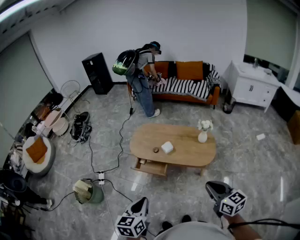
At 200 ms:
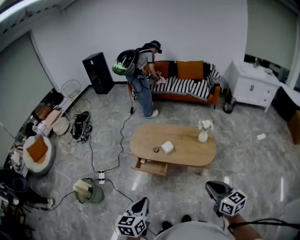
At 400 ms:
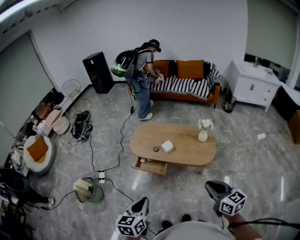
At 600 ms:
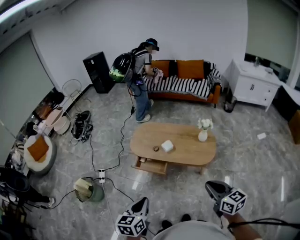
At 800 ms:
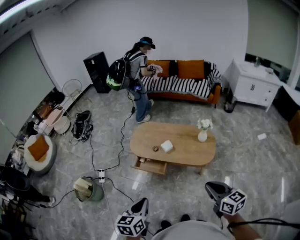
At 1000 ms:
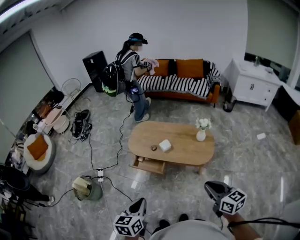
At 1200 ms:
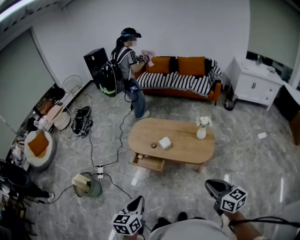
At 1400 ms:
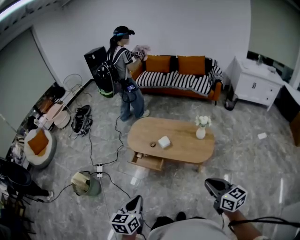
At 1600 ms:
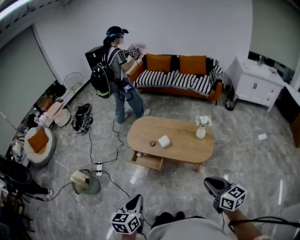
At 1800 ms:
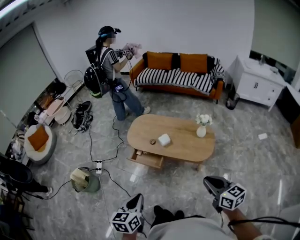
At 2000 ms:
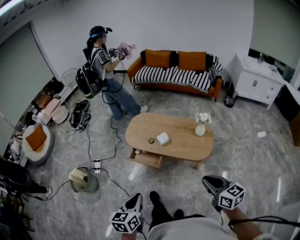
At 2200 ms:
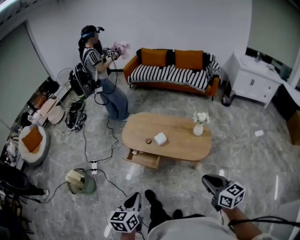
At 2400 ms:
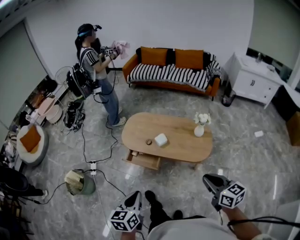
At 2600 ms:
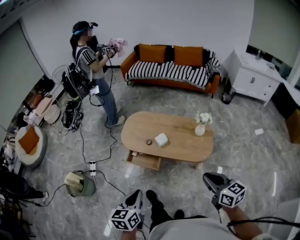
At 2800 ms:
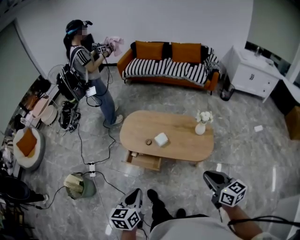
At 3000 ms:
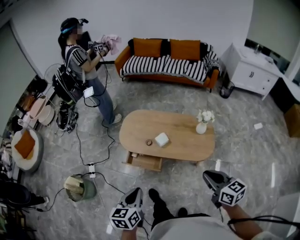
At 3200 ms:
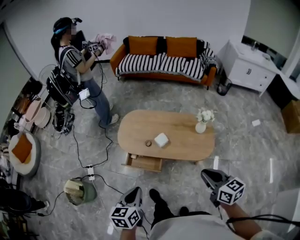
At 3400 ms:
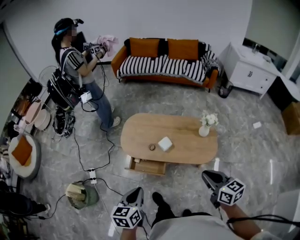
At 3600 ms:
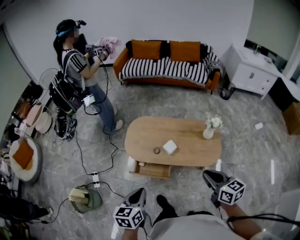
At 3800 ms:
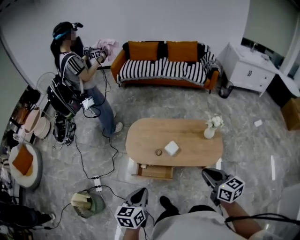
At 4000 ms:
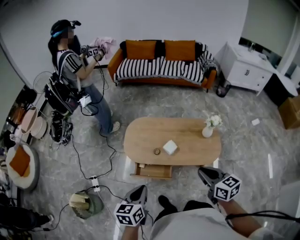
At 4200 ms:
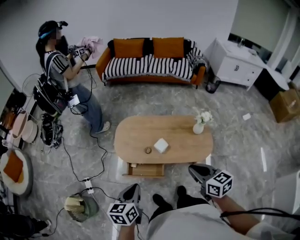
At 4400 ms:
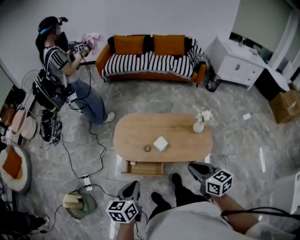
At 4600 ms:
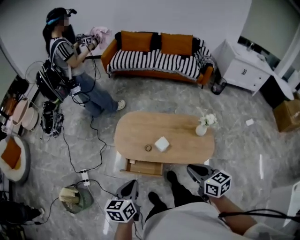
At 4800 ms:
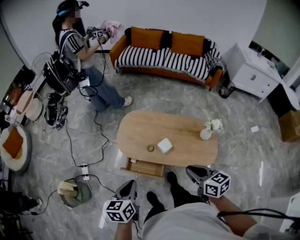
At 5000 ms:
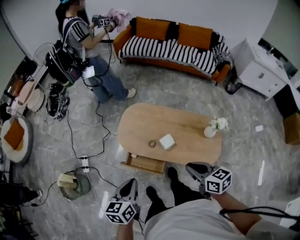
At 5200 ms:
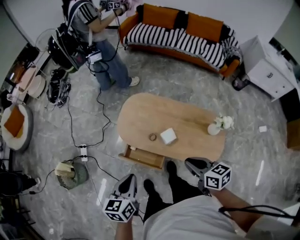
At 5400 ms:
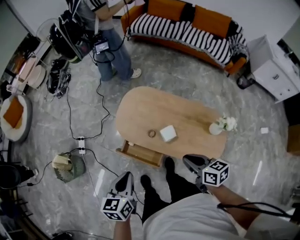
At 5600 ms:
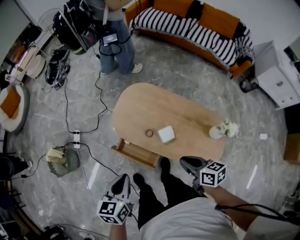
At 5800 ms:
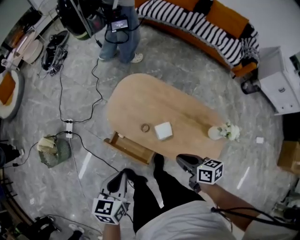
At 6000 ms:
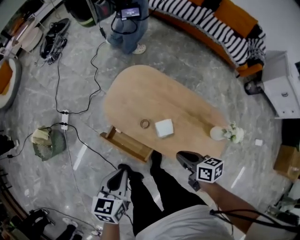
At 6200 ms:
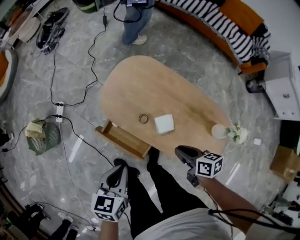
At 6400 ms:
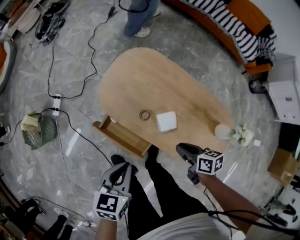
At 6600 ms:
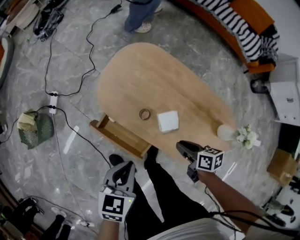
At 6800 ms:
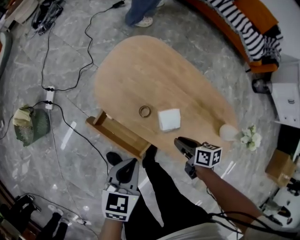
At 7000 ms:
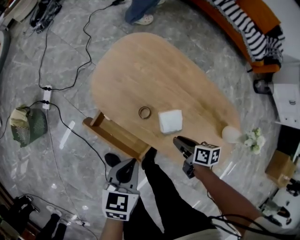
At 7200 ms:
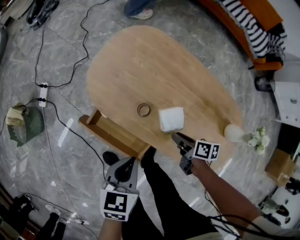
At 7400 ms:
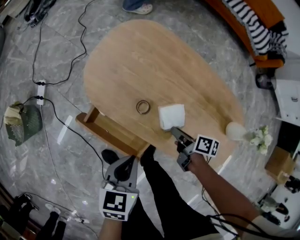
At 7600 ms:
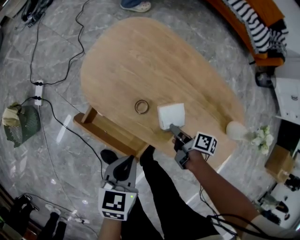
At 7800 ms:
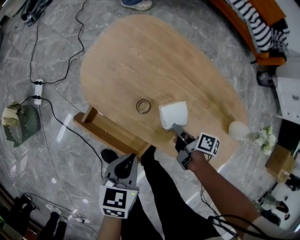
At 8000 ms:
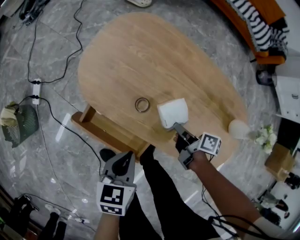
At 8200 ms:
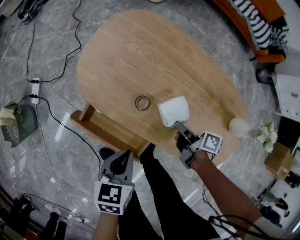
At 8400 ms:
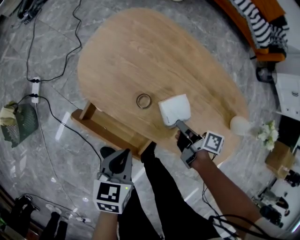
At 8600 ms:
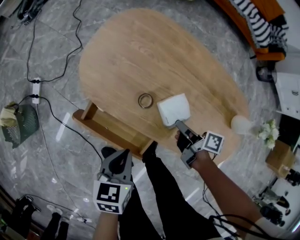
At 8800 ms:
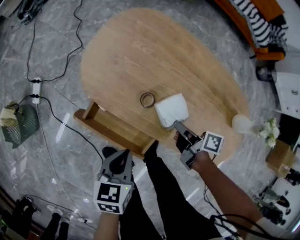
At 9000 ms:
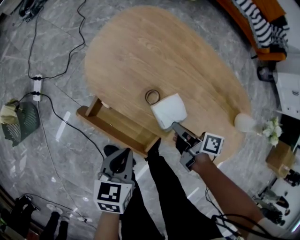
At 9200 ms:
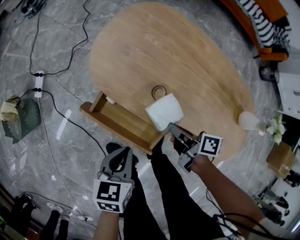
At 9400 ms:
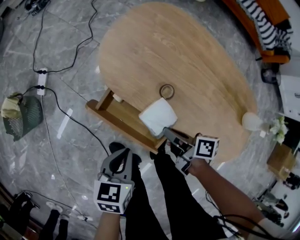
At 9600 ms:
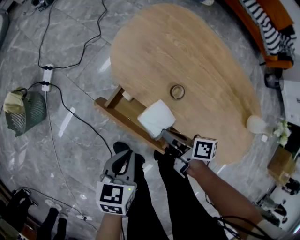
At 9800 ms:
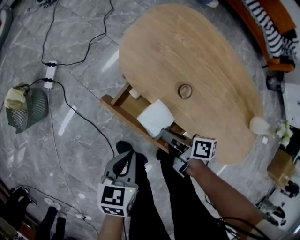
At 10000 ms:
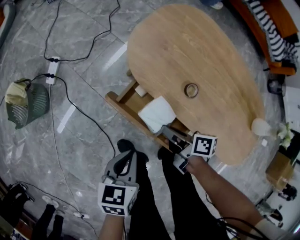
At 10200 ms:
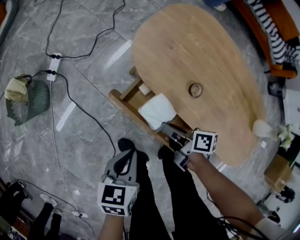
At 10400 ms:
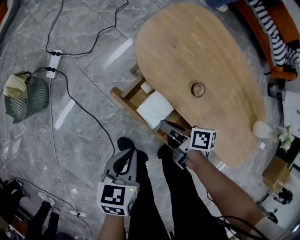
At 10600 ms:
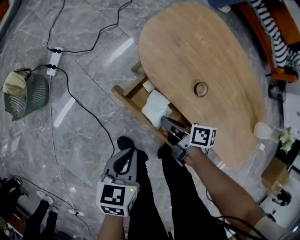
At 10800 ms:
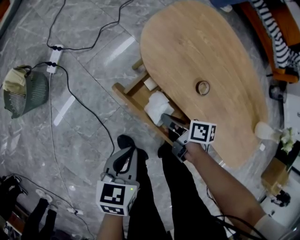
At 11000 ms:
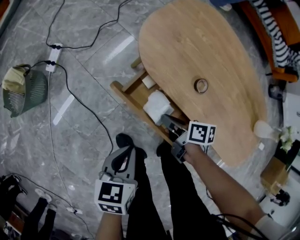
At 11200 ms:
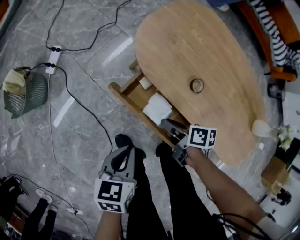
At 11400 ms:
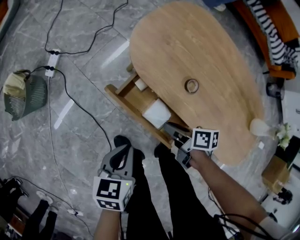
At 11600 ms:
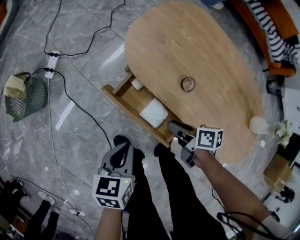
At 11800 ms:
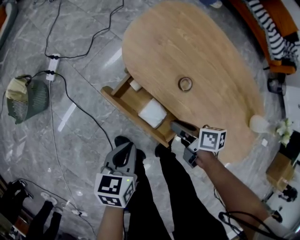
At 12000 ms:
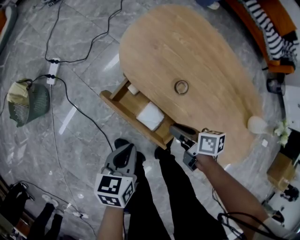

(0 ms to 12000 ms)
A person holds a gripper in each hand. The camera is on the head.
0 ms - 1600 ms: The right gripper travels to the right by approximately 5 cm.
1600 ms - 3000 ms: Both grippers move forward, roughly 15 cm.
3000 ms - 4400 ms: The right gripper heads to the left and forward, covering approximately 15 cm. The left gripper travels forward and to the left by about 15 cm.
4400 ms - 6000 ms: The left gripper travels downward by some 15 cm, and swivels approximately 20 degrees. The right gripper travels downward by about 25 cm, and swivels roughly 40 degrees.
6000 ms - 7600 ms: Both grippers move downward, approximately 25 cm. The right gripper rotates roughly 40 degrees, and opens its fingers.
7600 ms - 9000 ms: The two grippers go approximately 5 cm to the left. The right gripper closes its fingers.
9000 ms - 10400 ms: The right gripper heads to the left, covering roughly 20 cm. The left gripper heads to the left, covering about 15 cm.
10400 ms - 12000 ms: The right gripper moves to the right, some 10 cm; the left gripper shifts by approximately 5 cm.

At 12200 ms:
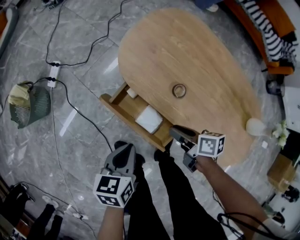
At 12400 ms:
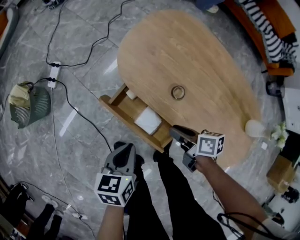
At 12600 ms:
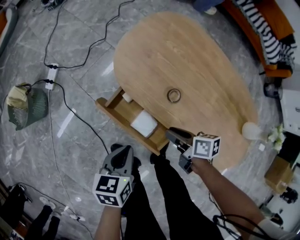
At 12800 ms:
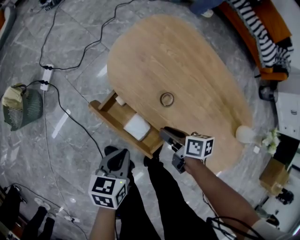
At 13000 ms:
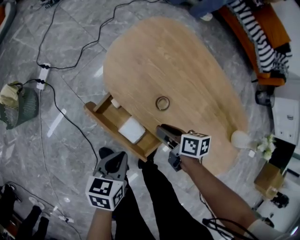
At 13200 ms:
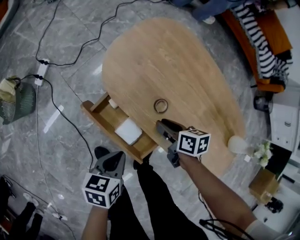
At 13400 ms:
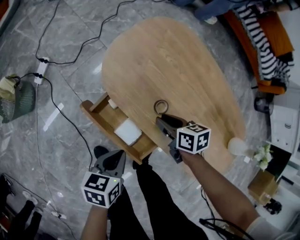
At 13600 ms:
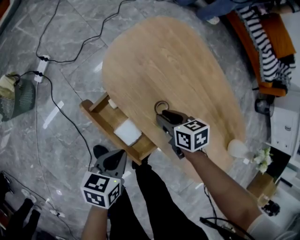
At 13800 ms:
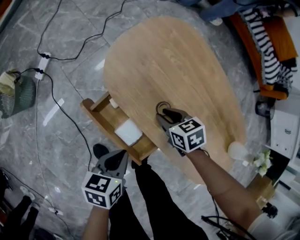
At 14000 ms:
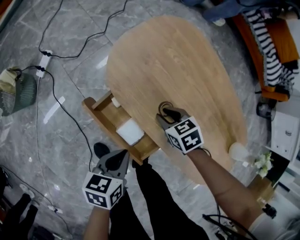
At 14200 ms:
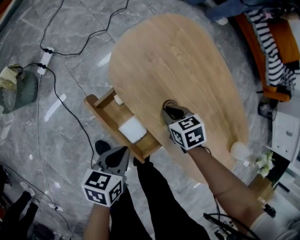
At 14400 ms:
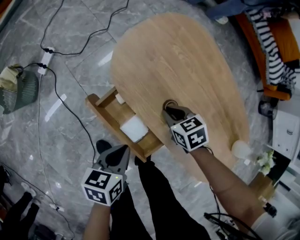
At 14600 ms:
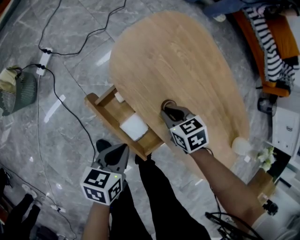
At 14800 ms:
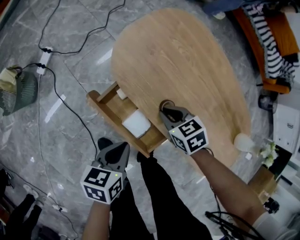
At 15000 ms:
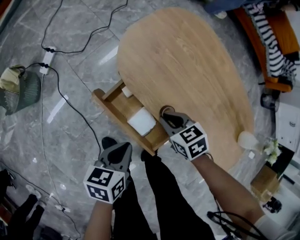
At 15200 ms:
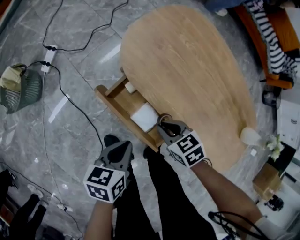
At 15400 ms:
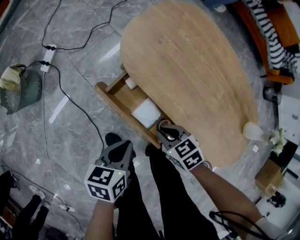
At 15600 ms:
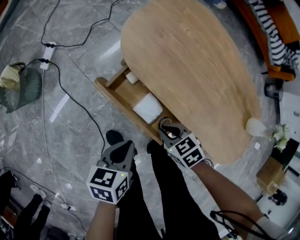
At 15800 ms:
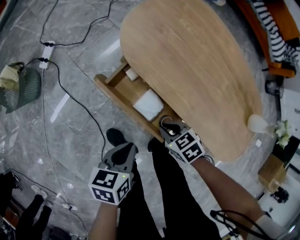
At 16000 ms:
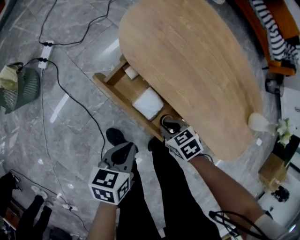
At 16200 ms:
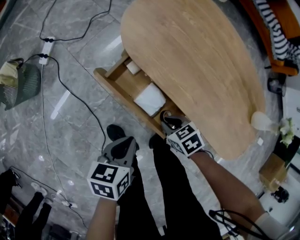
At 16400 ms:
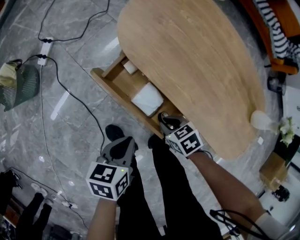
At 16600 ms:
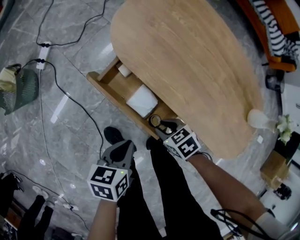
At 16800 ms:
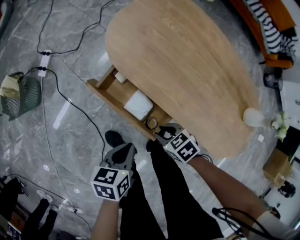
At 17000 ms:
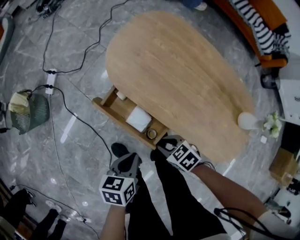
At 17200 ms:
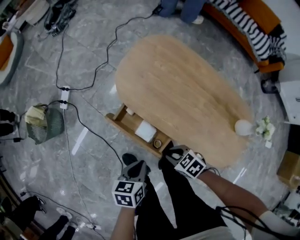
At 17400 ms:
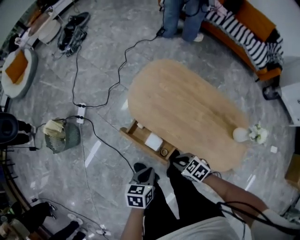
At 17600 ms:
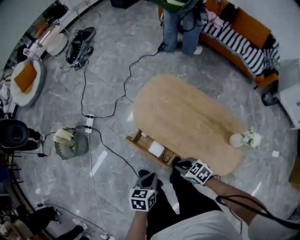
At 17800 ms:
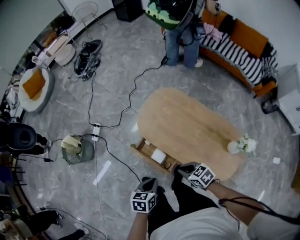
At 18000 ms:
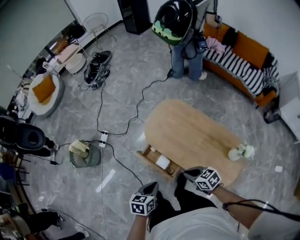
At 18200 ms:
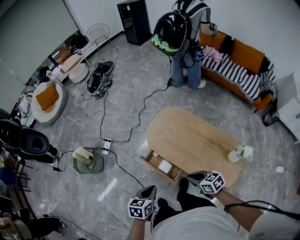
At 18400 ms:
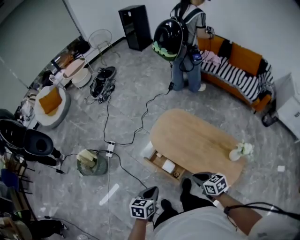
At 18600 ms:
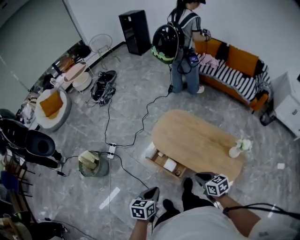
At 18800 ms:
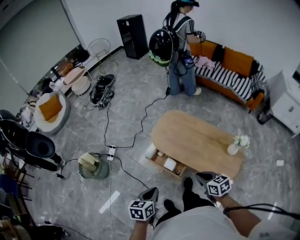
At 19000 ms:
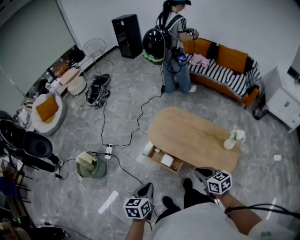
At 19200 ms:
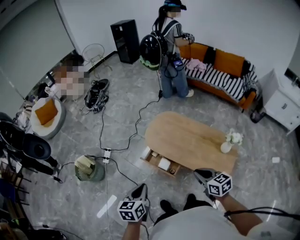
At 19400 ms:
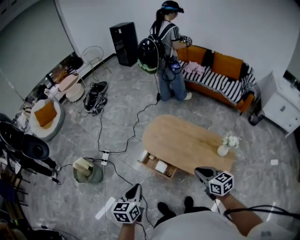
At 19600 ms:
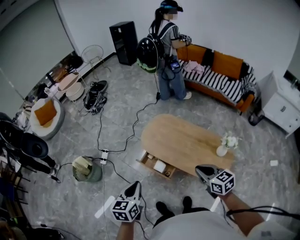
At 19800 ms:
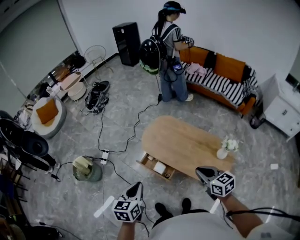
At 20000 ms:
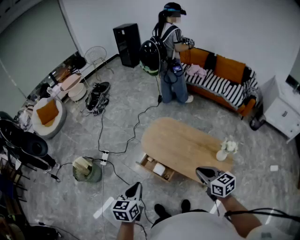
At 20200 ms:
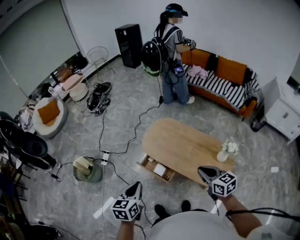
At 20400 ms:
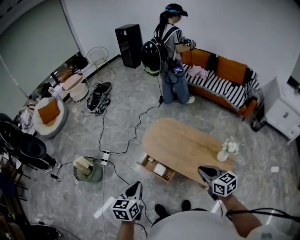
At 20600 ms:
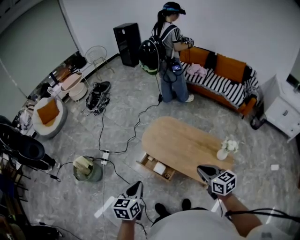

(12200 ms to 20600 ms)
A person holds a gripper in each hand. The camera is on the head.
12200 ms - 13600 ms: The right gripper heads forward, covering some 10 cm, and swivels about 40 degrees, while the left gripper is displaced to the right by approximately 5 cm.
13600 ms - 15000 ms: The right gripper shifts roughly 10 cm to the left and backward.
15000 ms - 16400 ms: The left gripper heads backward, covering approximately 5 cm. Meanwhile the right gripper goes roughly 15 cm backward and downward.
16400 ms - 17800 ms: The two grippers go roughly 30 cm upward.
17800 ms - 19200 ms: The left gripper is displaced upward, to the left and backward by some 25 cm, and changes its angle by some 20 degrees. The right gripper heads upward and backward, covering about 25 cm, and swivels some 30 degrees.
19200 ms - 20600 ms: The right gripper moves to the right and upward, approximately 10 cm. Meanwhile the left gripper ends up some 5 cm from where it was.

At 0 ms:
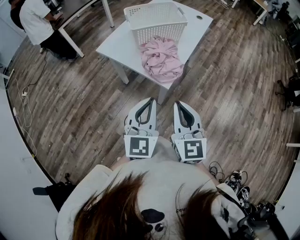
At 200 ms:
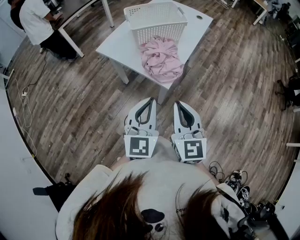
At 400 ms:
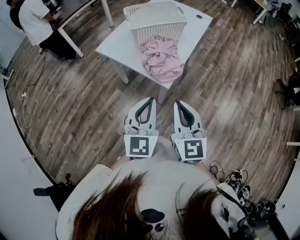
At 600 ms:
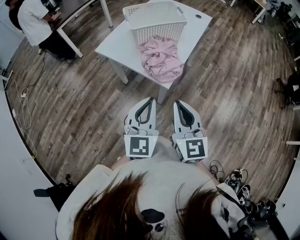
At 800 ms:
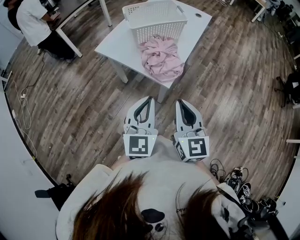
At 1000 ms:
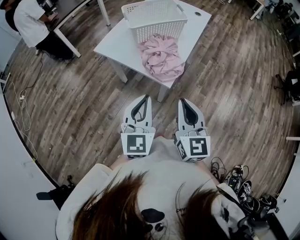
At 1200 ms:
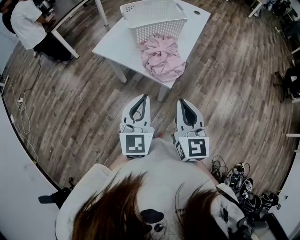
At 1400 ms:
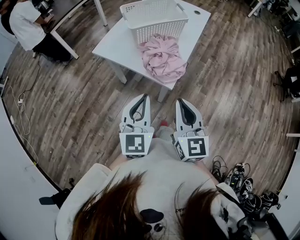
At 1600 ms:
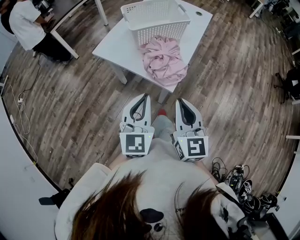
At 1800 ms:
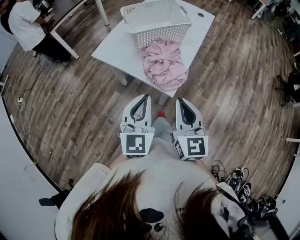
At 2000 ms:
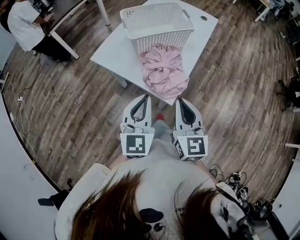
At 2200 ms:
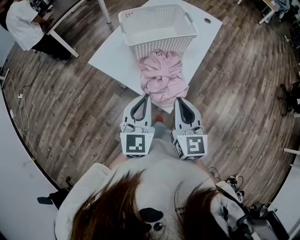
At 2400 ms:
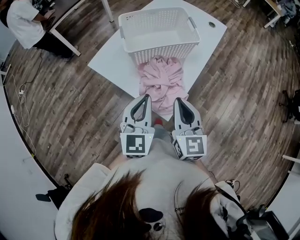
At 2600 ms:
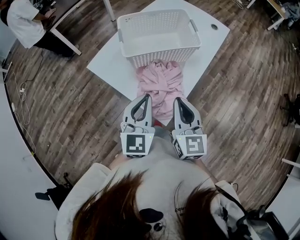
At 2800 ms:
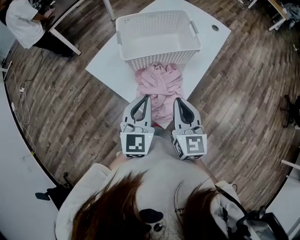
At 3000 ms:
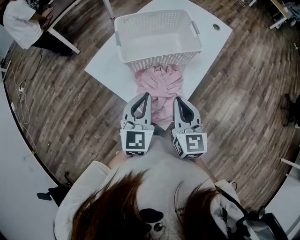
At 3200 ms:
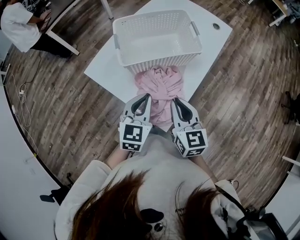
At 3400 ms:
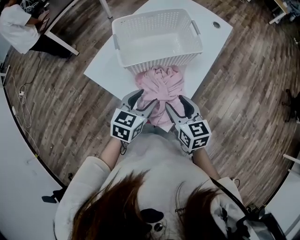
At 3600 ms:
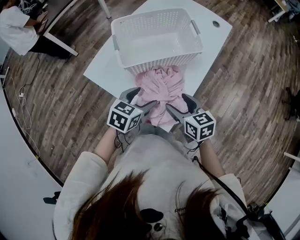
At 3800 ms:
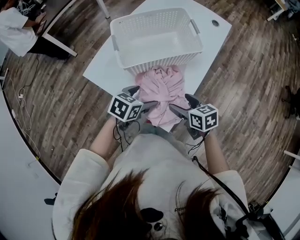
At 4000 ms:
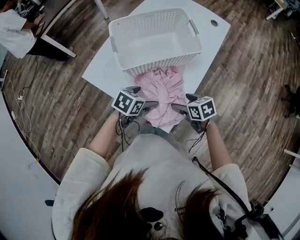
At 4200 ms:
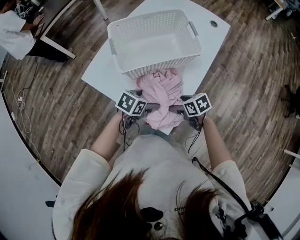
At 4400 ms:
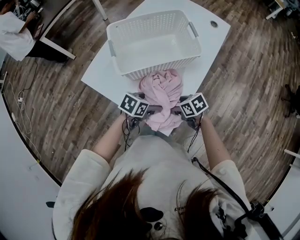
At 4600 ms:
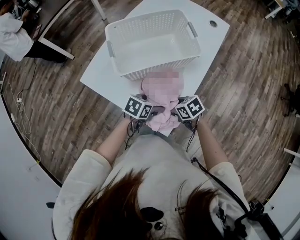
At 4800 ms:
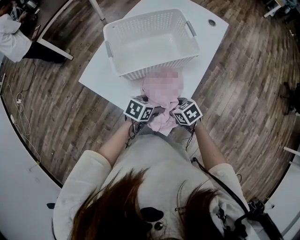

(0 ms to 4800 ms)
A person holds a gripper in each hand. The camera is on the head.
0 ms - 1600 ms: The right gripper moves approximately 5 cm; the left gripper goes approximately 10 cm forward and to the left.
1600 ms - 3200 ms: The grippers both shift forward by roughly 25 cm.
3200 ms - 4800 ms: The grippers both shift downward by approximately 20 cm. The left gripper changes its angle by some 50 degrees, and opens its fingers. Meanwhile the right gripper tips its fingers downward by some 30 degrees, and opens.
